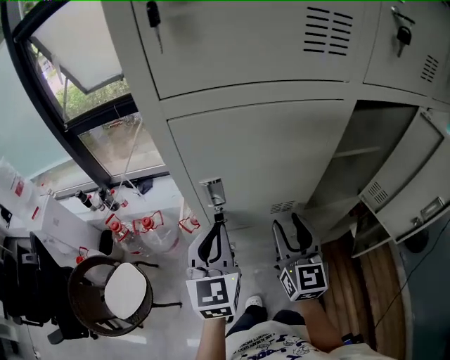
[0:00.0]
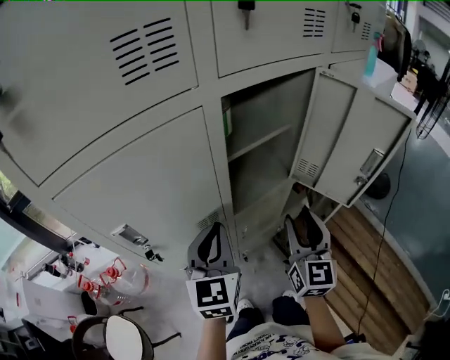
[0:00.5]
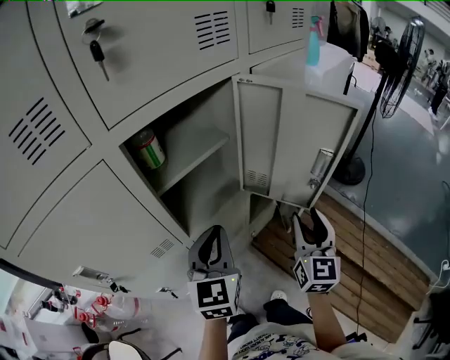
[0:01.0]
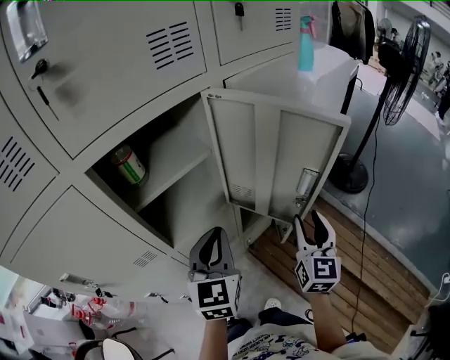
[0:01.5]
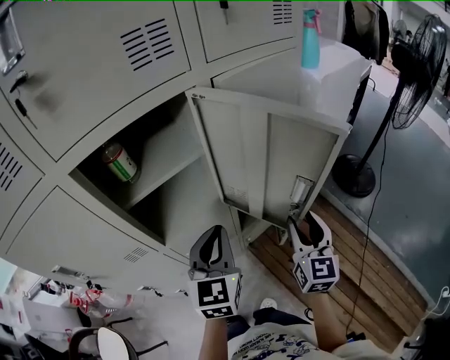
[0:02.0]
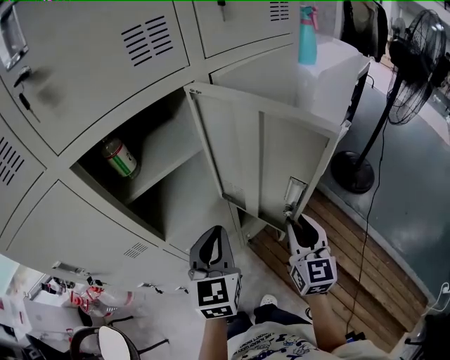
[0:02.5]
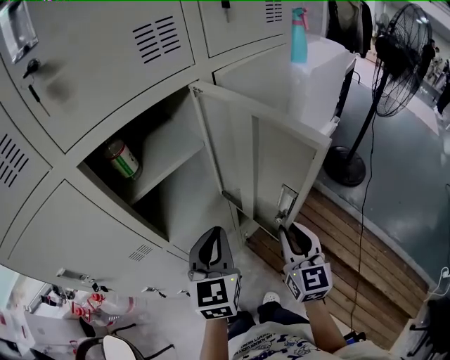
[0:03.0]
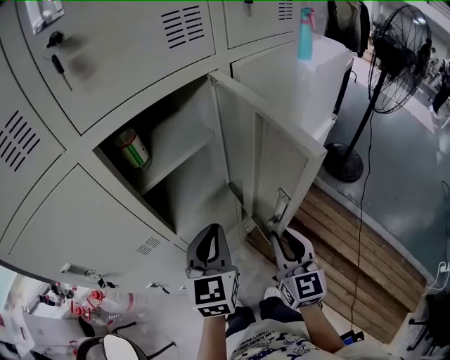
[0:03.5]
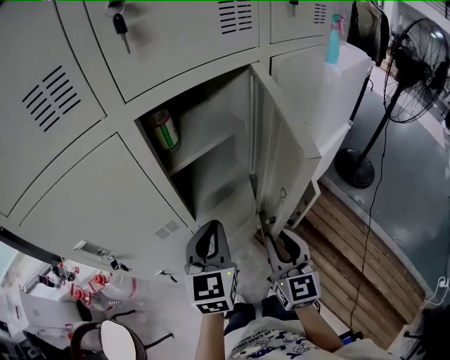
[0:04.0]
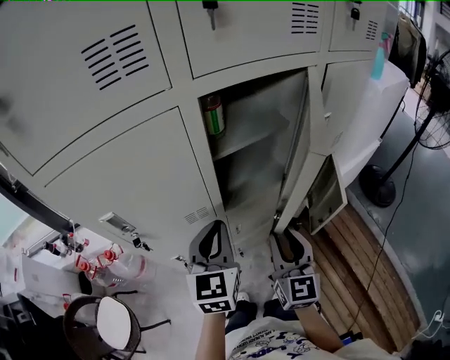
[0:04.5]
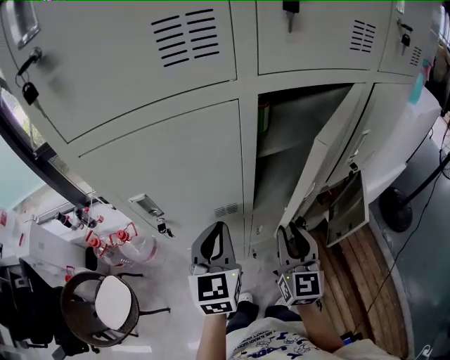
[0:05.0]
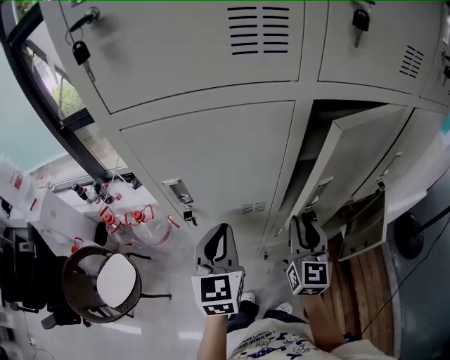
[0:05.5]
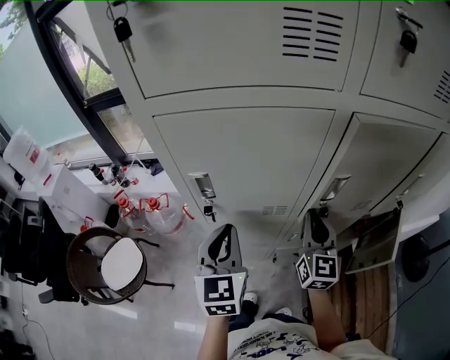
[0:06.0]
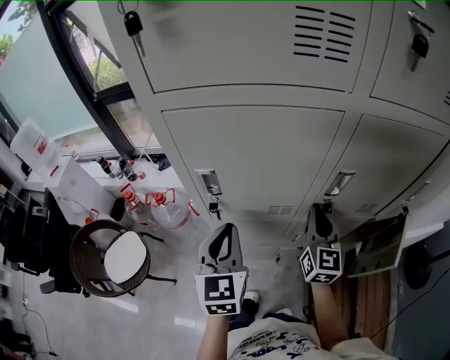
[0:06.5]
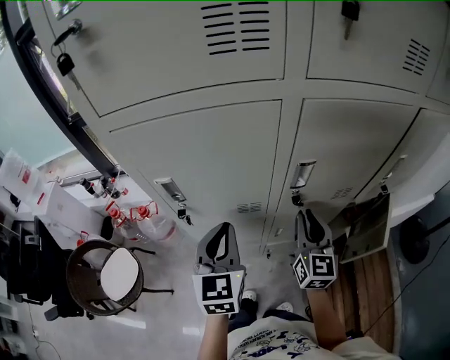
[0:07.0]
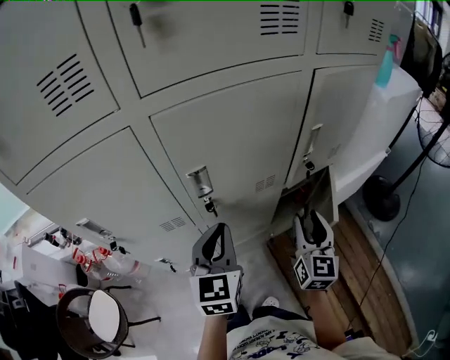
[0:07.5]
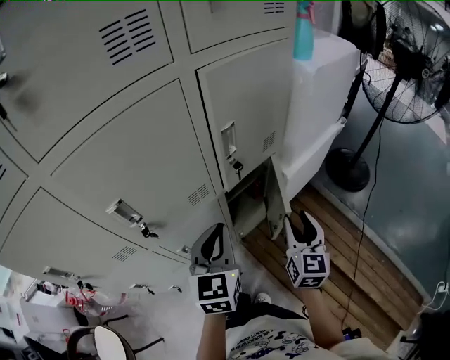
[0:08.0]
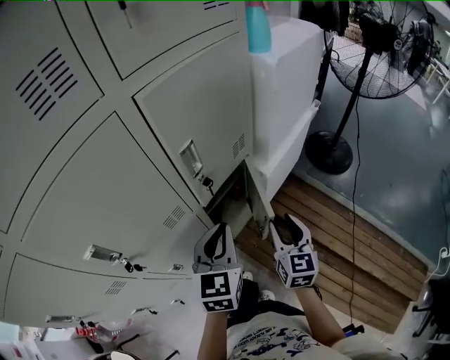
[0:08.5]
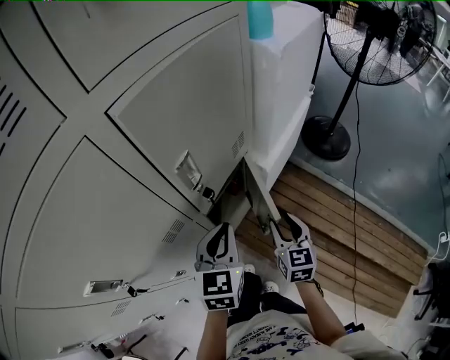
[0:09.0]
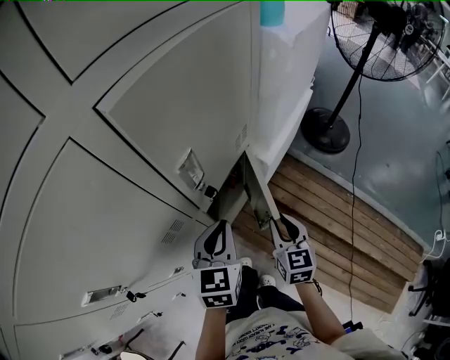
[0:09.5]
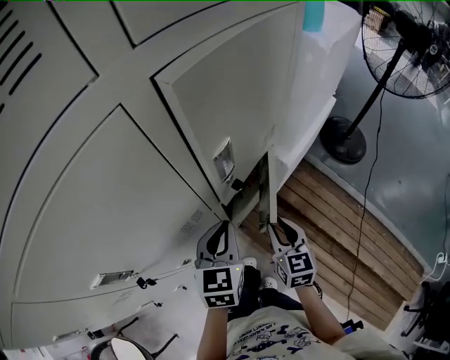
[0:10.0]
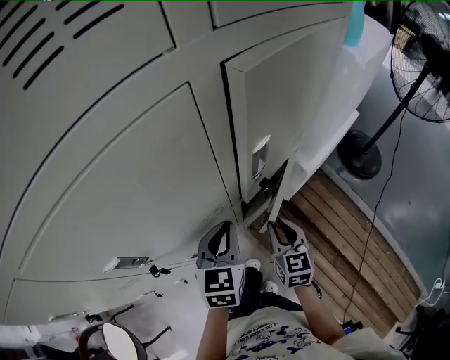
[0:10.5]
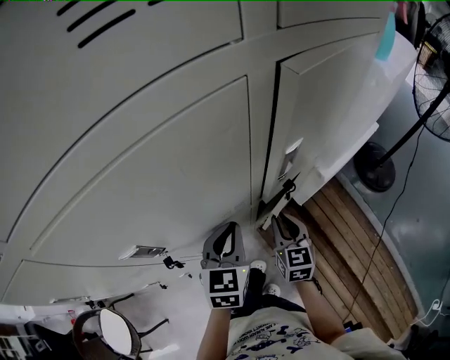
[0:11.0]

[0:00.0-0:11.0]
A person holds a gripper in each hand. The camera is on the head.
0:00.0 to 0:02.0: The two grippers travel together, approximately 50 cm. The right gripper swivels approximately 30 degrees. Meanwhile the left gripper swivels roughly 30 degrees.
0:02.0 to 0:03.5: The left gripper moves to the left, approximately 5 cm, while the right gripper goes approximately 15 cm to the left and backward, and closes.
0:03.5 to 0:05.5: The left gripper moves approximately 25 cm, and turns by roughly 30 degrees; the right gripper changes place by some 25 cm, and turns by some 20 degrees.
0:05.5 to 0:07.5: The right gripper ends up roughly 25 cm from where it was, and opens its fingers. Meanwhile the left gripper changes place by some 20 cm.
0:07.5 to 0:09.0: The right gripper moves some 20 cm, and swivels some 30 degrees; the left gripper moves roughly 30 cm, and swivels approximately 30 degrees.
0:09.0 to 0:11.0: The grippers both shift to the left by about 15 cm. The right gripper changes its angle by some 20 degrees, and closes.

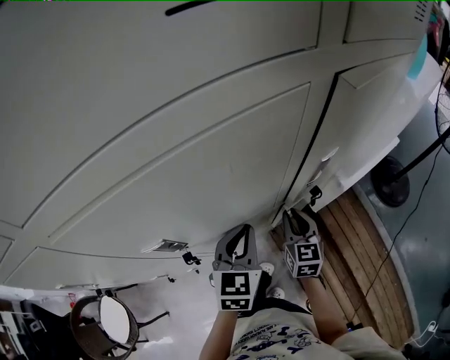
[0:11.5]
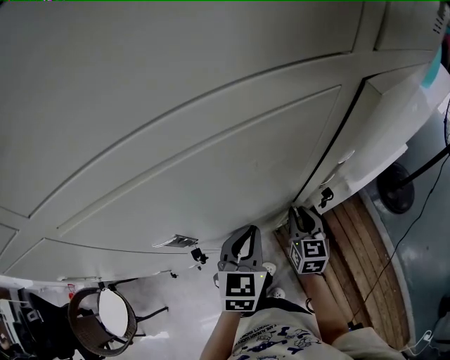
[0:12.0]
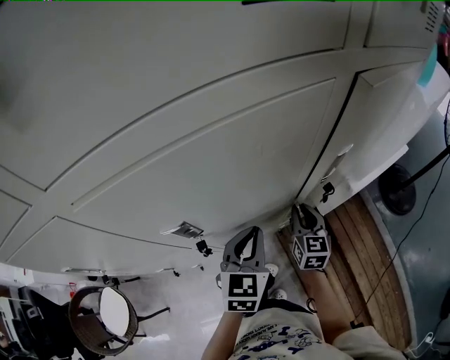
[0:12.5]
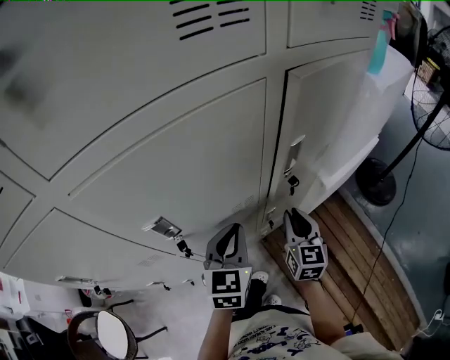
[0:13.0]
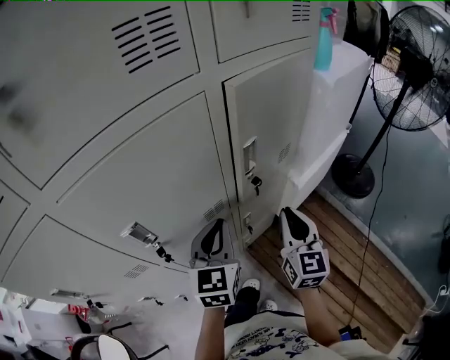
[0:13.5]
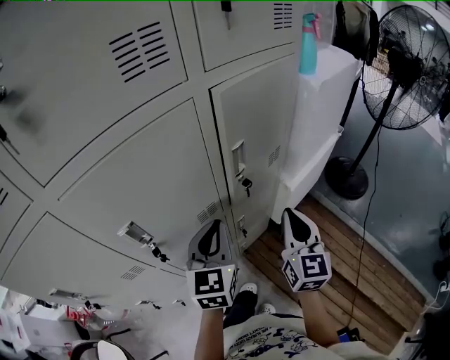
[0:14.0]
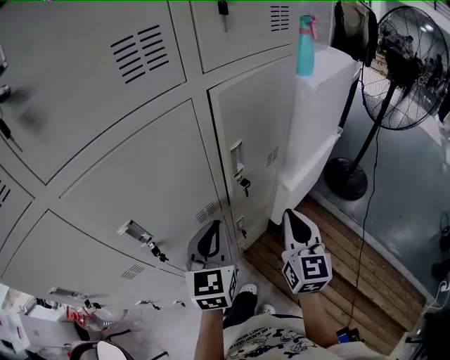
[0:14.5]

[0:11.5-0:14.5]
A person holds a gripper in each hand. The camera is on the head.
0:11.5 to 0:13.0: The right gripper moves upward, approximately 5 cm.
0:13.0 to 0:14.5: The right gripper moves upward, to the right and backward, approximately 15 cm; the left gripper goes about 10 cm upward and to the right.

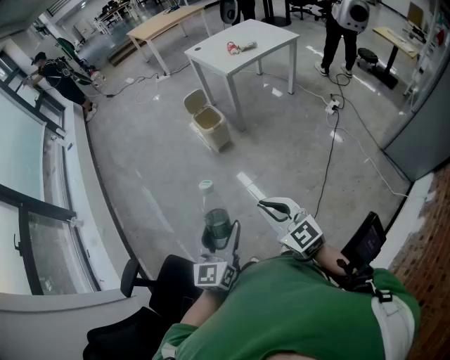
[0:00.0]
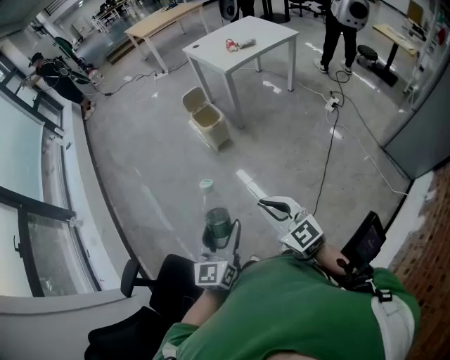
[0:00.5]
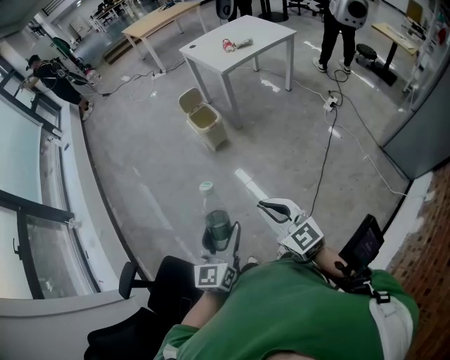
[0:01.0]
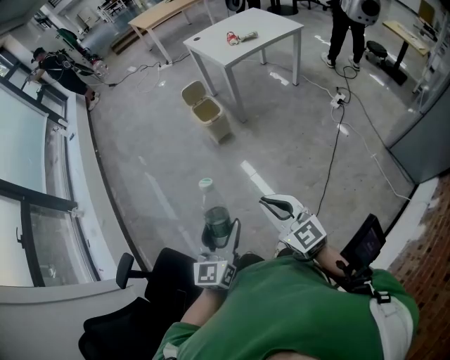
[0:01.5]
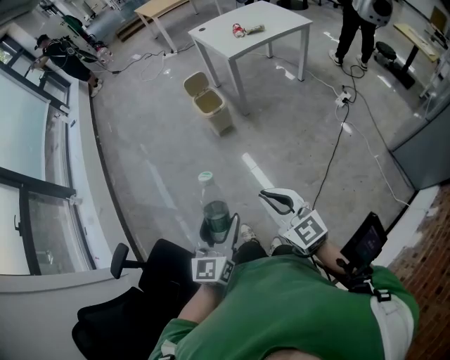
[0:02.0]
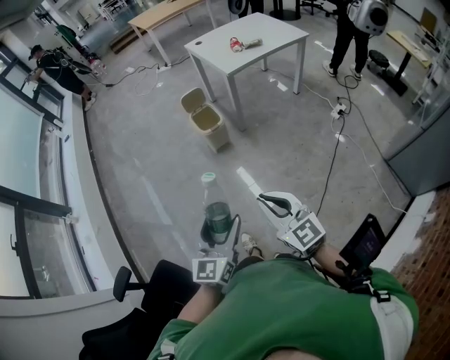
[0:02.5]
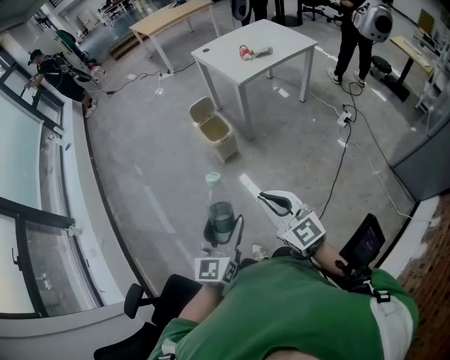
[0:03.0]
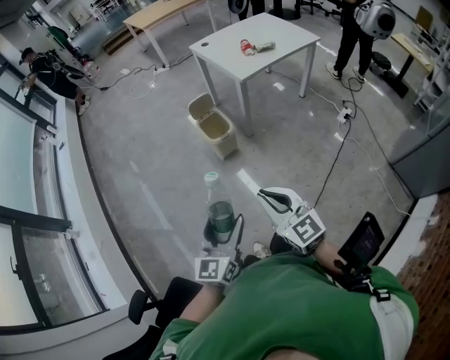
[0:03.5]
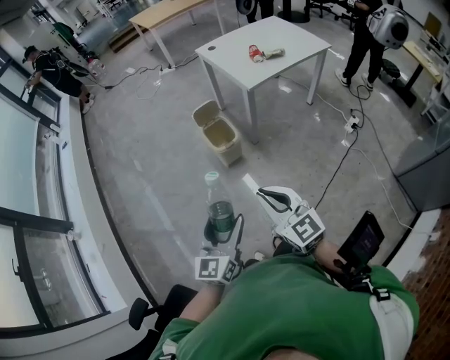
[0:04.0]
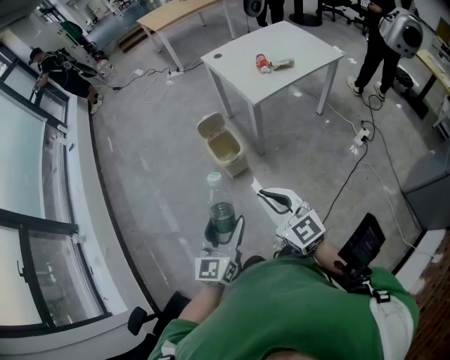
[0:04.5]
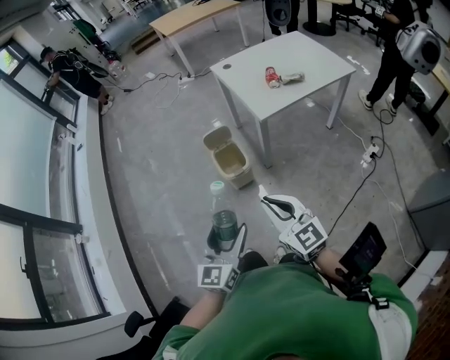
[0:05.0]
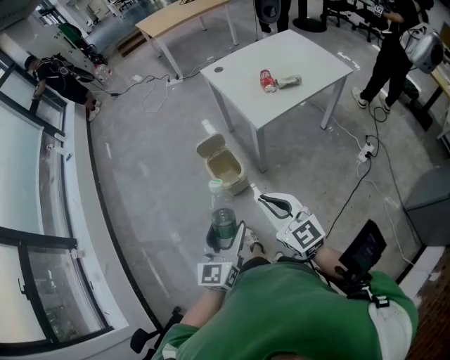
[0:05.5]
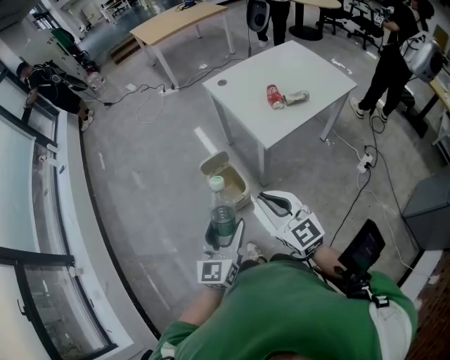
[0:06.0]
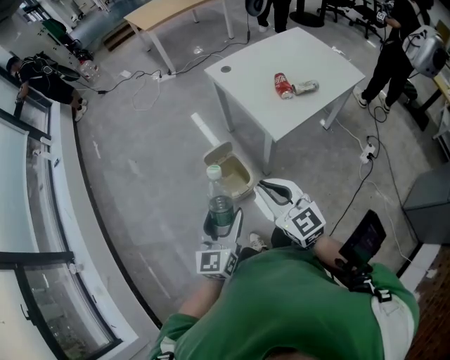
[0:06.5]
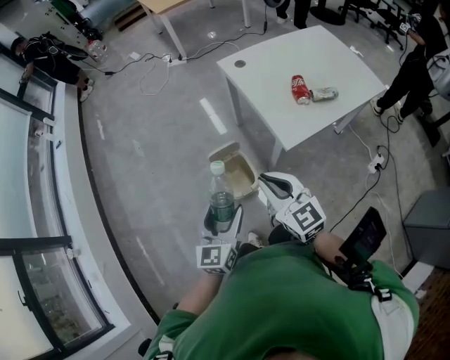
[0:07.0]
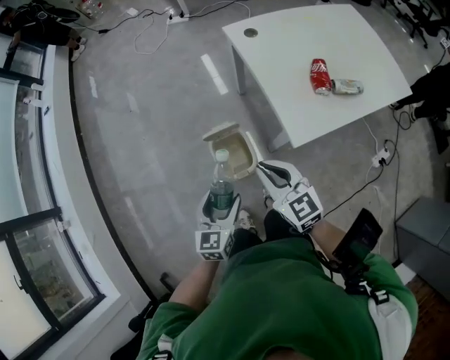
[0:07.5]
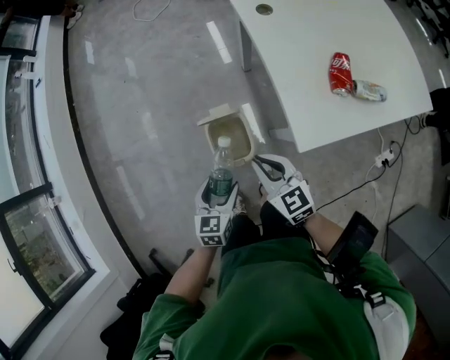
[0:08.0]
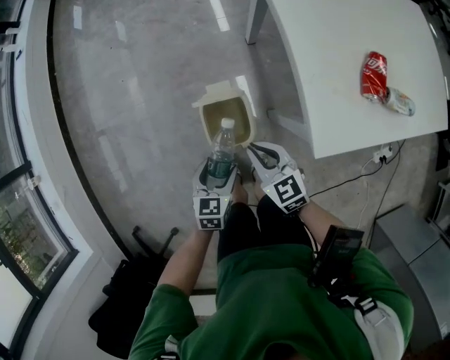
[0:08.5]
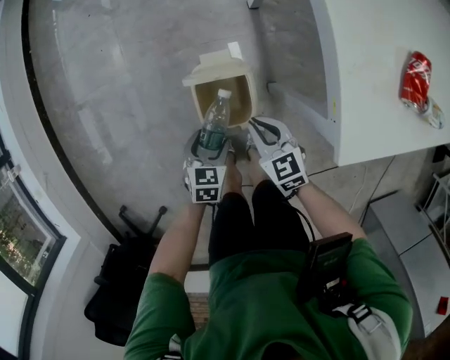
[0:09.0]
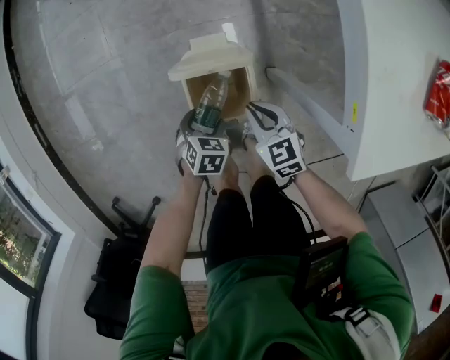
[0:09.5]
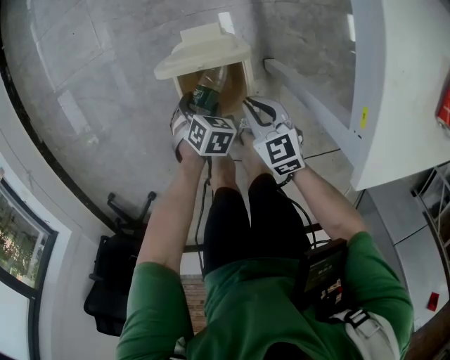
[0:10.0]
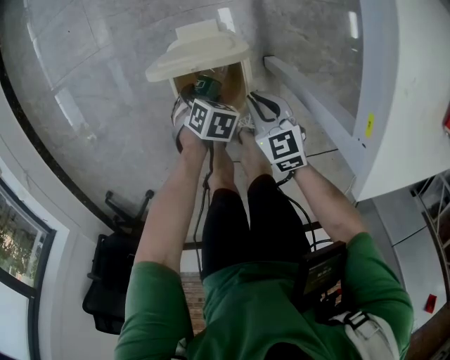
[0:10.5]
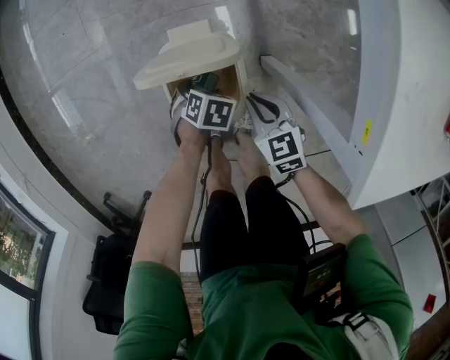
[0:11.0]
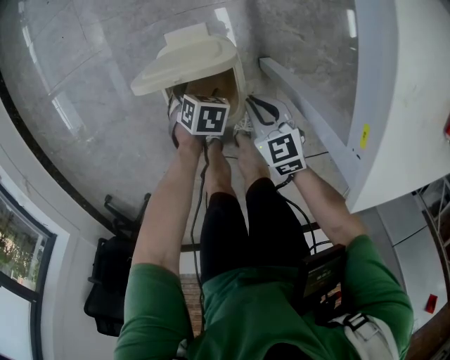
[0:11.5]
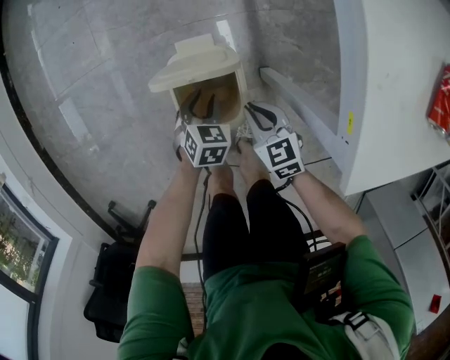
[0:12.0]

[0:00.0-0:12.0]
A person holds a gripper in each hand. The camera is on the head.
0:00.0 to 0:02.0: The grippers both shift to the right by about 10 cm.
0:02.0 to 0:04.0: The two grippers go about 30 cm forward.
0:04.0 to 0:06.0: The grippers both shift forward by roughly 30 cm.
0:06.0 to 0:08.0: The right gripper goes about 30 cm forward and downward, and changes its angle by approximately 30 degrees. Meanwhile the left gripper is displaced downward and forward by roughly 30 cm, and angles its fingers downward, by about 30 degrees.
0:08.0 to 0:10.0: Both grippers move downward, approximately 35 cm. The left gripper angles its fingers downward, by some 40 degrees. Meanwhile the right gripper swivels some 20 degrees.
0:10.0 to 0:12.0: The left gripper changes place by some 5 cm, and closes up.
